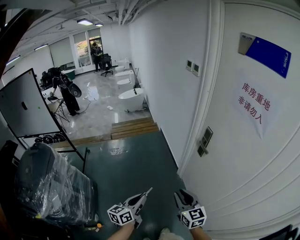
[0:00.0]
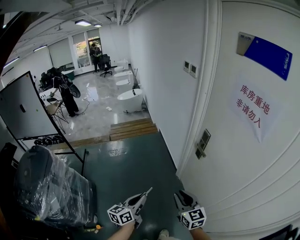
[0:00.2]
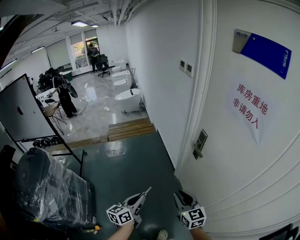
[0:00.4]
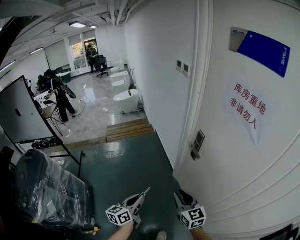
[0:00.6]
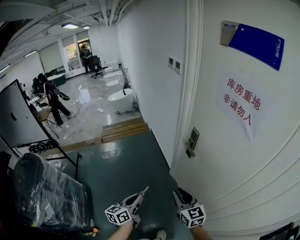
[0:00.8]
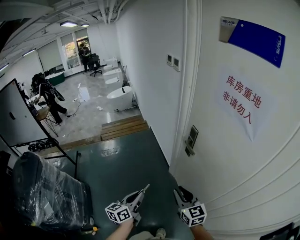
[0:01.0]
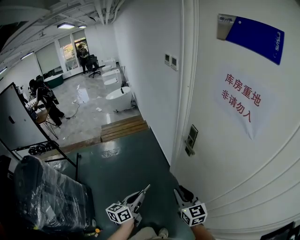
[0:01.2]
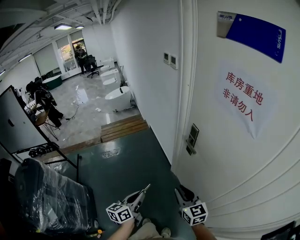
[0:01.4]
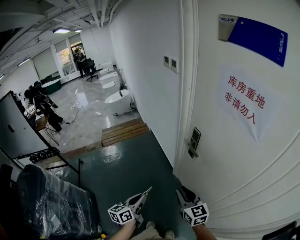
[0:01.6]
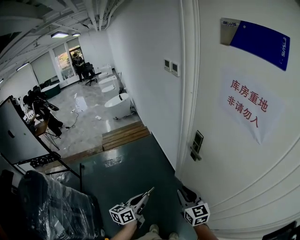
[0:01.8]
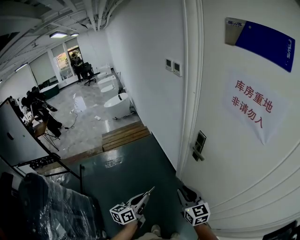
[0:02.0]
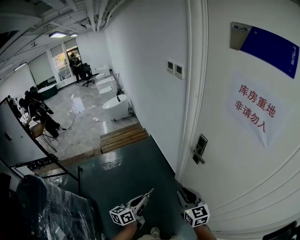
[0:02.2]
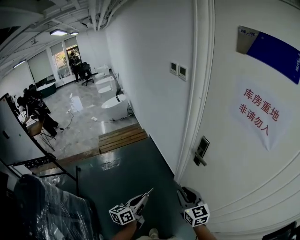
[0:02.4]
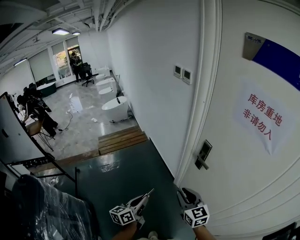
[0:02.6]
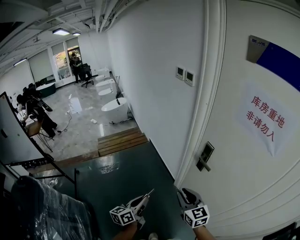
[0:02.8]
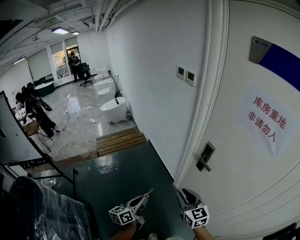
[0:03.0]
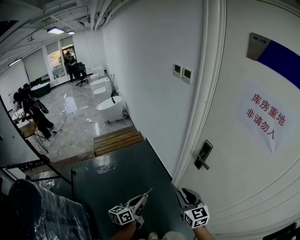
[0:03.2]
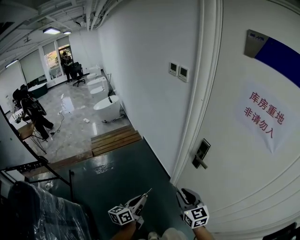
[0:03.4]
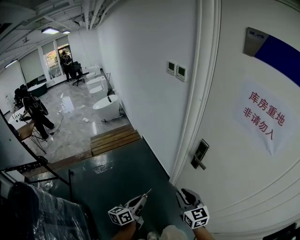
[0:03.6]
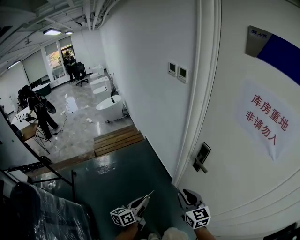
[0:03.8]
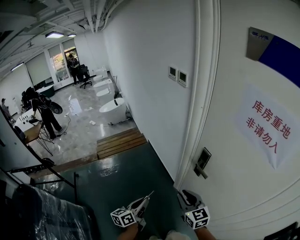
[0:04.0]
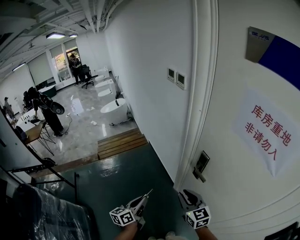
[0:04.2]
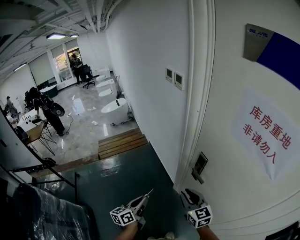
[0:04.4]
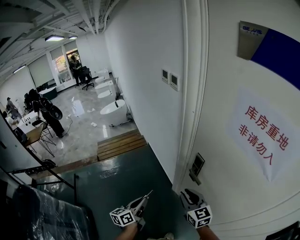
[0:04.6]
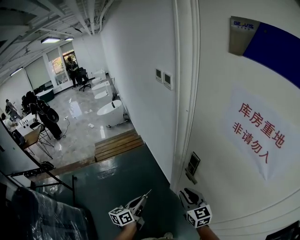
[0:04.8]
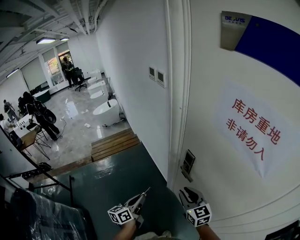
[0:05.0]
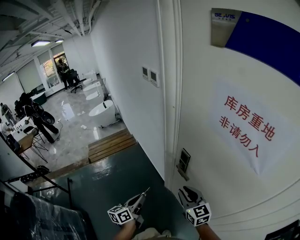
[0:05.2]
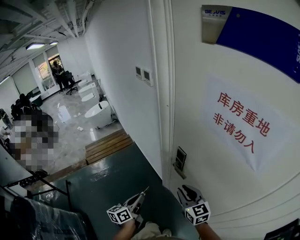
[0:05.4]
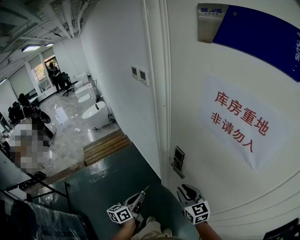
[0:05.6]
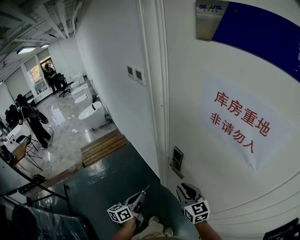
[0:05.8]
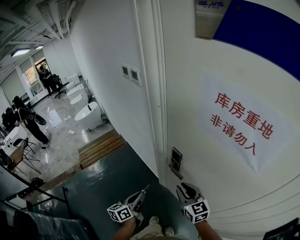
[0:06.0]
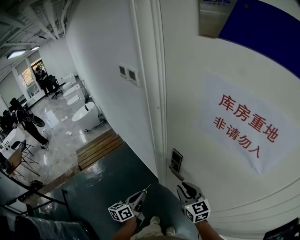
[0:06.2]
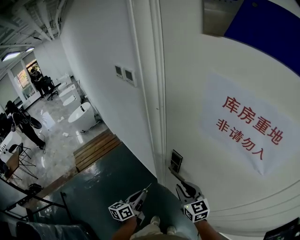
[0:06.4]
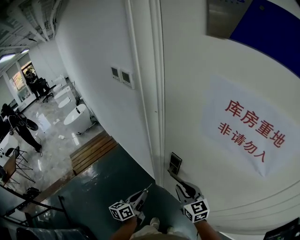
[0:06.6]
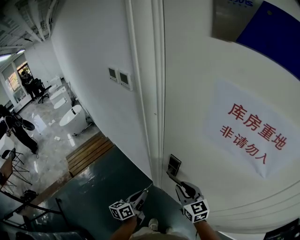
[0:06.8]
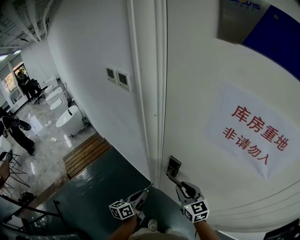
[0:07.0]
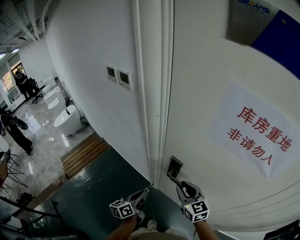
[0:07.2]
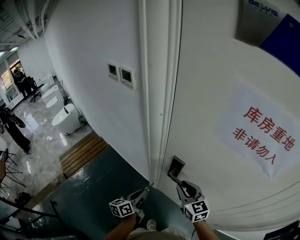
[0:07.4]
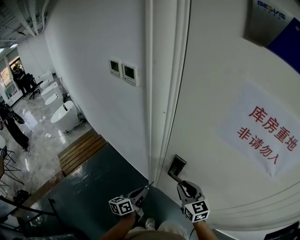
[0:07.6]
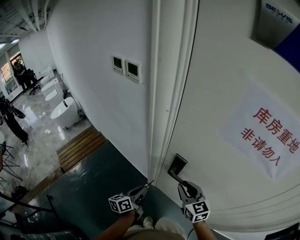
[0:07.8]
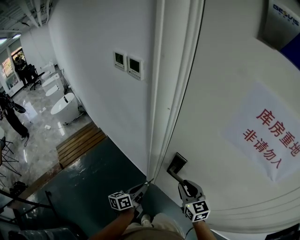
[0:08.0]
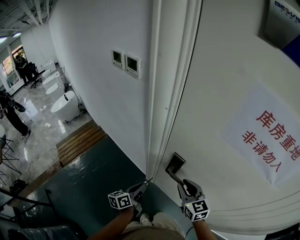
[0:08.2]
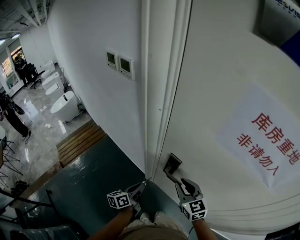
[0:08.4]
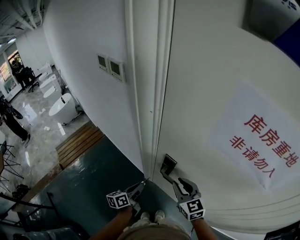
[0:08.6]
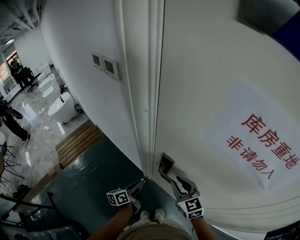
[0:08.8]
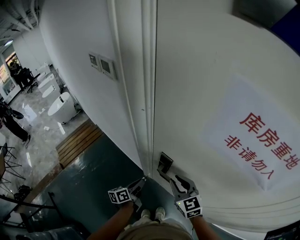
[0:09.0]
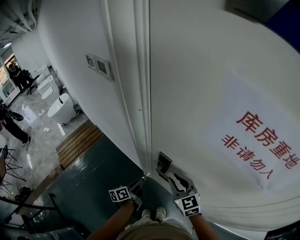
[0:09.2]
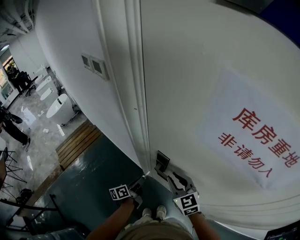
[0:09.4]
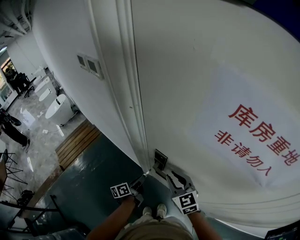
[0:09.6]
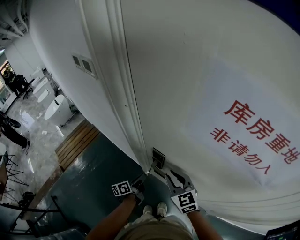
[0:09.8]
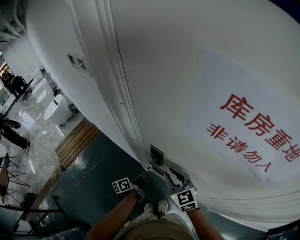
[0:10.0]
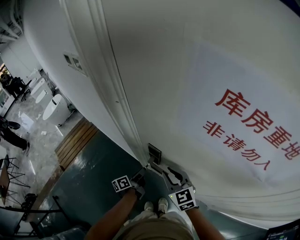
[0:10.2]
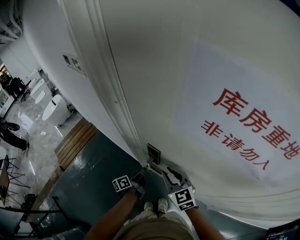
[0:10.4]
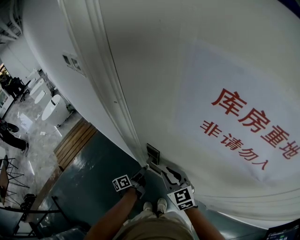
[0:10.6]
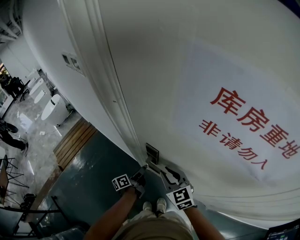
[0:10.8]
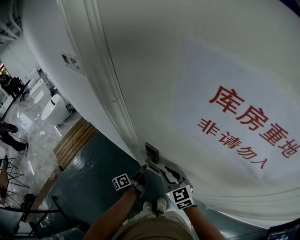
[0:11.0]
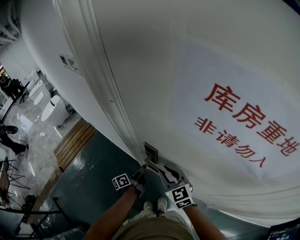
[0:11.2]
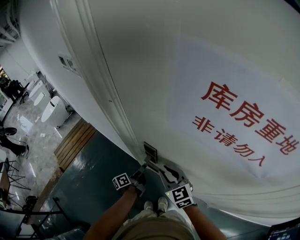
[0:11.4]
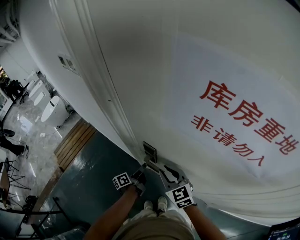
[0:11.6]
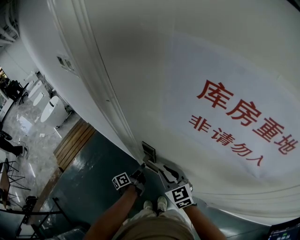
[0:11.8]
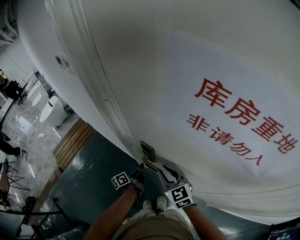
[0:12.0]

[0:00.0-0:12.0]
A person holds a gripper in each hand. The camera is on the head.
0:00.0 to 0:01.6: Both grippers travel together forward and to the right, some 10 cm.
0:01.6 to 0:03.0: Both grippers travel together to the left and forward, some 15 cm.
0:03.0 to 0:04.4: Both grippers move forward and to the right, some 10 cm.
0:04.4 to 0:06.0: The left gripper goes approximately 10 cm to the right and forward, while the right gripper heads to the right, covering about 10 cm.
0:06.0 to 0:07.6: The right gripper shifts some 5 cm forward. Meanwhile the left gripper moves forward, approximately 10 cm.
0:07.6 to 0:09.0: The left gripper shifts approximately 5 cm downward and forward.
0:09.0 to 0:10.4: The left gripper goes approximately 5 cm to the right and downward.
0:10.4 to 0:12.0: The grippers stay close to where they were, moving slightly.

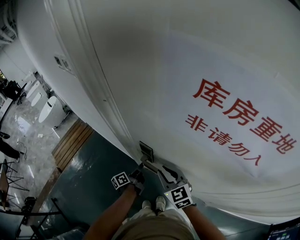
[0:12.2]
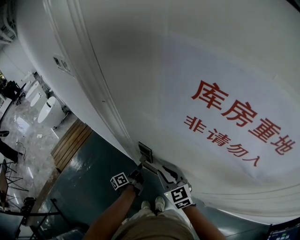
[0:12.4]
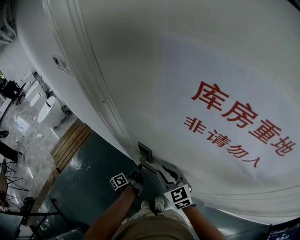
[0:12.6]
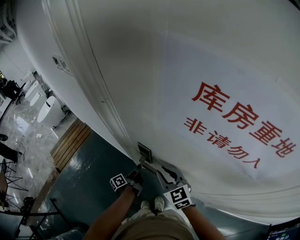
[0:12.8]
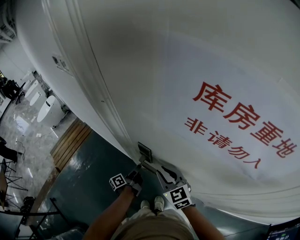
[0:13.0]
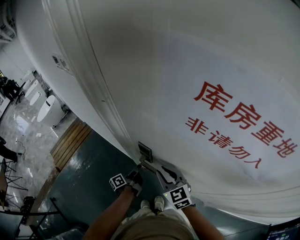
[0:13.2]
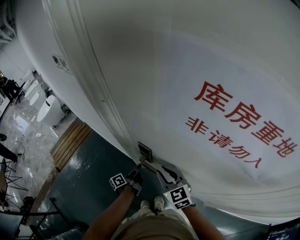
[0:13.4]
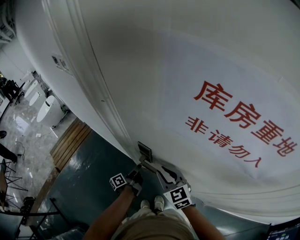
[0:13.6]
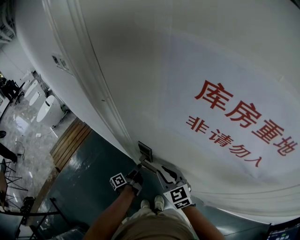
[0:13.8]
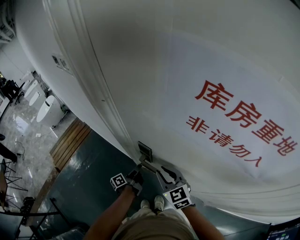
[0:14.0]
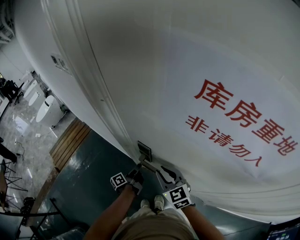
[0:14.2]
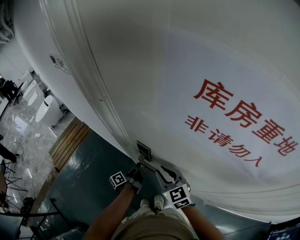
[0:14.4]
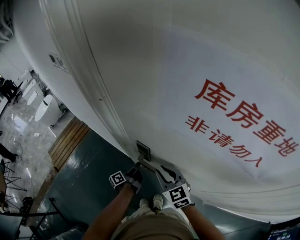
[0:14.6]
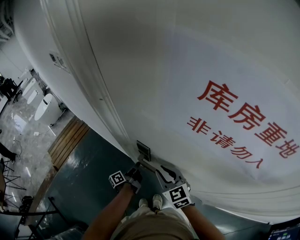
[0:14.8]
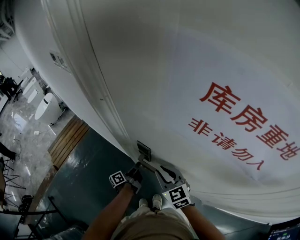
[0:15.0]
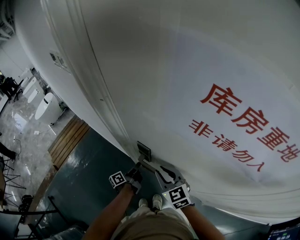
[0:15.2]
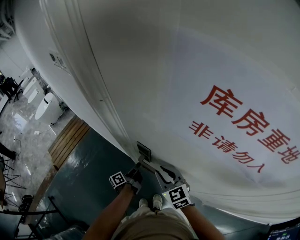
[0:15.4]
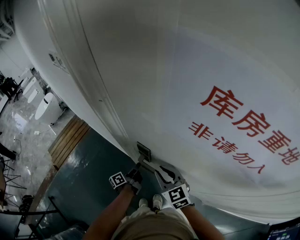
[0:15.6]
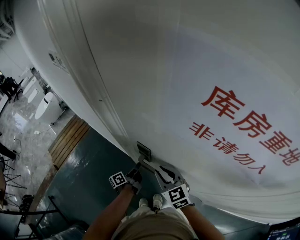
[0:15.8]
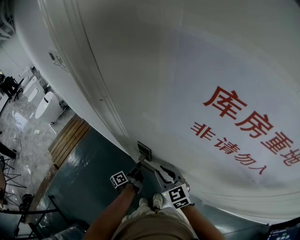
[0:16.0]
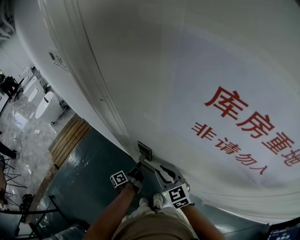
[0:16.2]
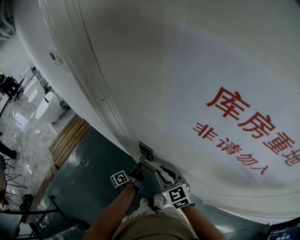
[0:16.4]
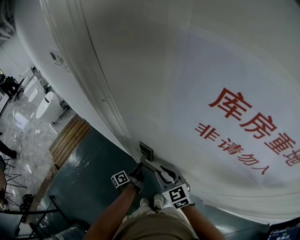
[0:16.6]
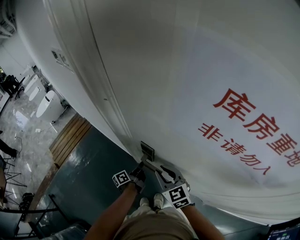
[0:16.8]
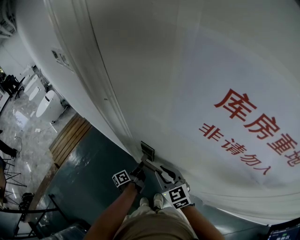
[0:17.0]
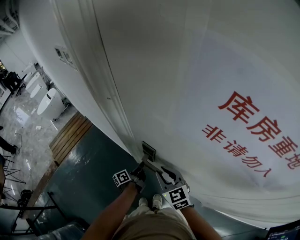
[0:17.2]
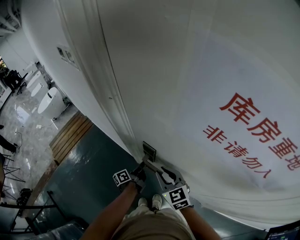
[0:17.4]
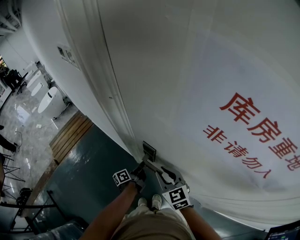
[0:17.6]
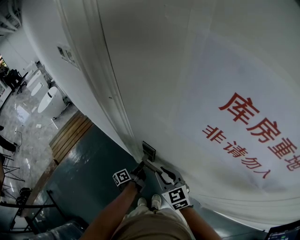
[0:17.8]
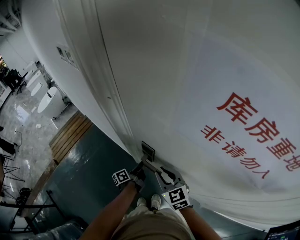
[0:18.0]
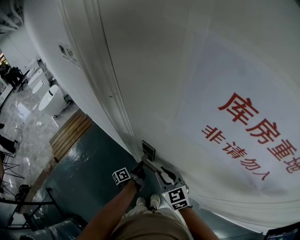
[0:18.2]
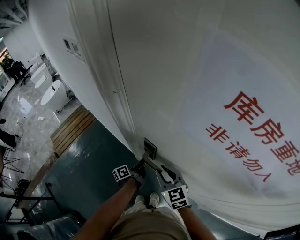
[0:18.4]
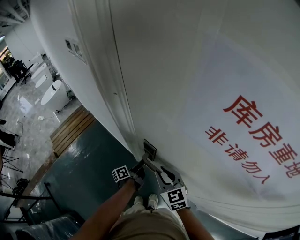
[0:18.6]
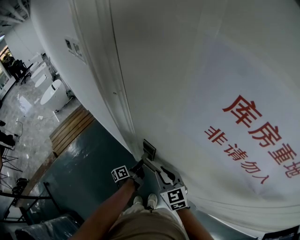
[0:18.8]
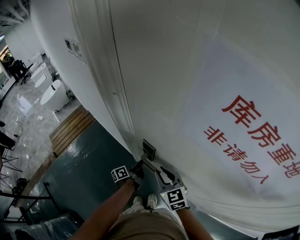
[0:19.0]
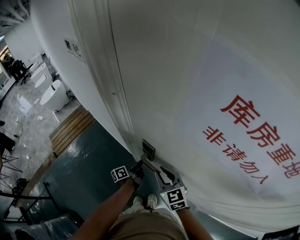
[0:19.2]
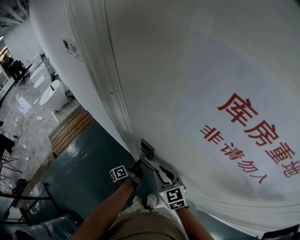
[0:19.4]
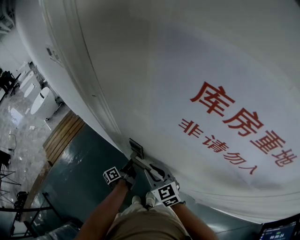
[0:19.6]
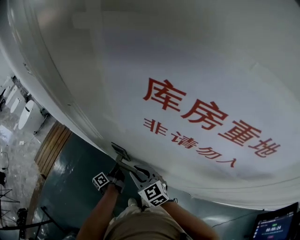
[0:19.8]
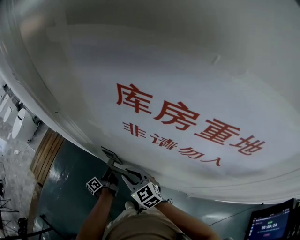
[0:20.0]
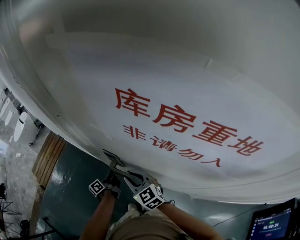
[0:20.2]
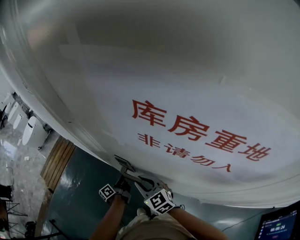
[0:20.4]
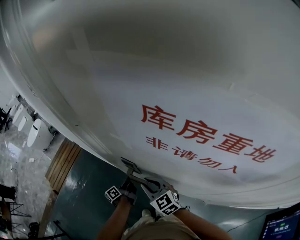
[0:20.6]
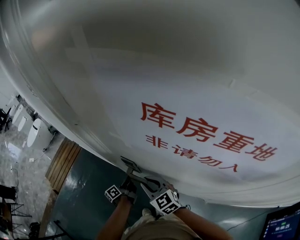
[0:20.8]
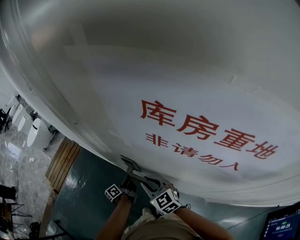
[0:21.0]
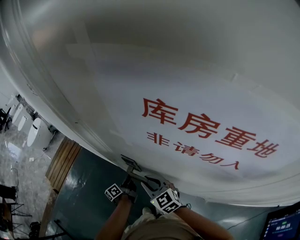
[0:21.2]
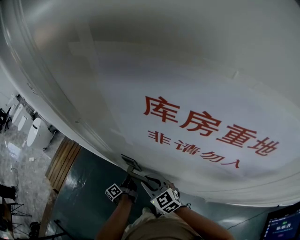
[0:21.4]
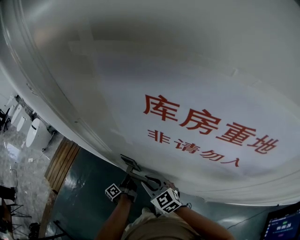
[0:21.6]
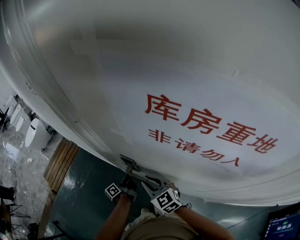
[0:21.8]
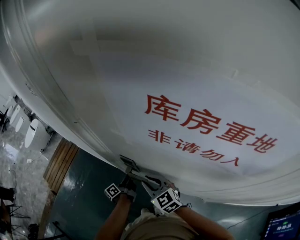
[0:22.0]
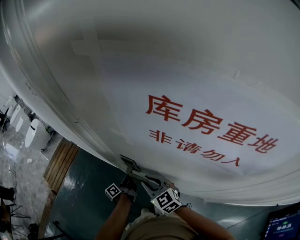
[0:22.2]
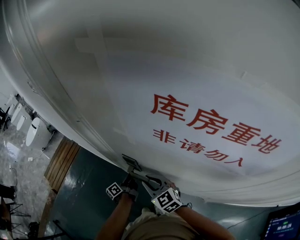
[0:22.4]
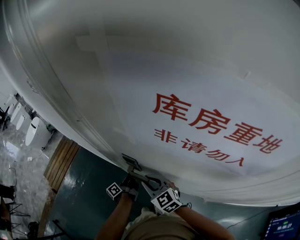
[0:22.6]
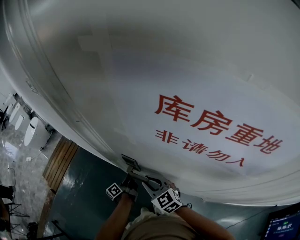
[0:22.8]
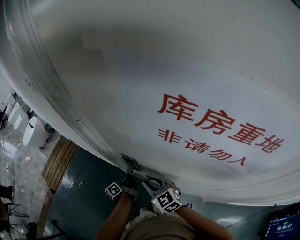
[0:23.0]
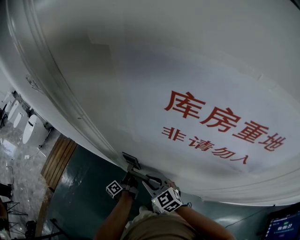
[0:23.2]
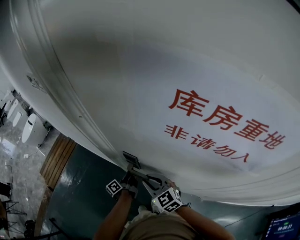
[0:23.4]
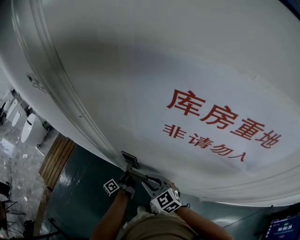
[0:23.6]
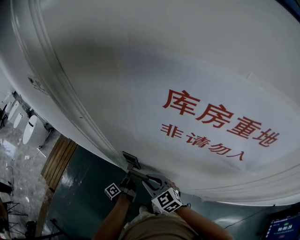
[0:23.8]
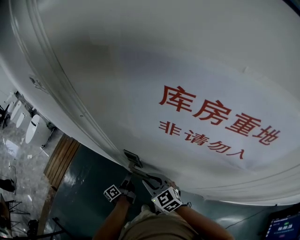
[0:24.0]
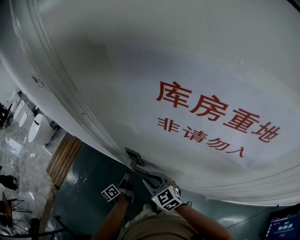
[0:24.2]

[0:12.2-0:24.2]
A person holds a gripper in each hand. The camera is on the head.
0:12.2 to 0:13.8: The grippers move only a little.
0:13.8 to 0:15.2: Both grippers stay about where they are.
0:15.2 to 0:16.6: The grippers move only a little.
0:16.6 to 0:19.8: Both grippers stay about where they are.
0:19.8 to 0:22.6: The grippers make only small movements.
0:22.6 to 0:24.2: The left gripper moves roughly 5 cm.
